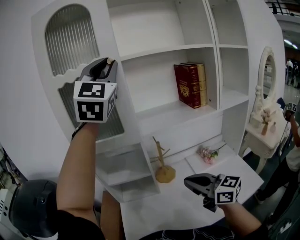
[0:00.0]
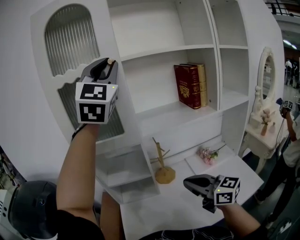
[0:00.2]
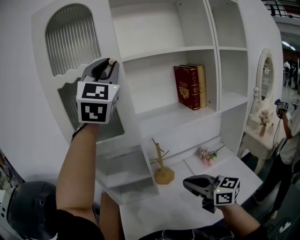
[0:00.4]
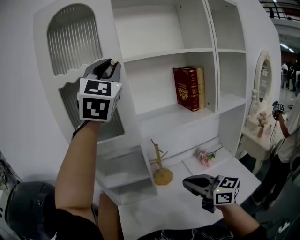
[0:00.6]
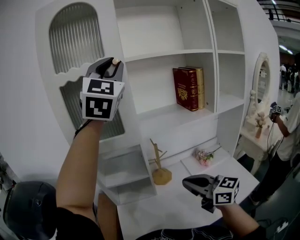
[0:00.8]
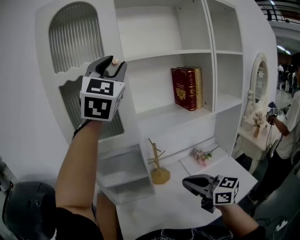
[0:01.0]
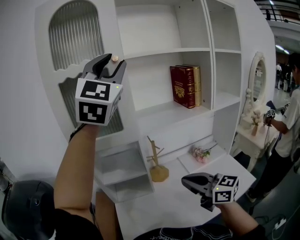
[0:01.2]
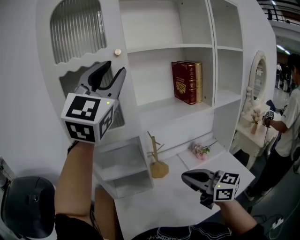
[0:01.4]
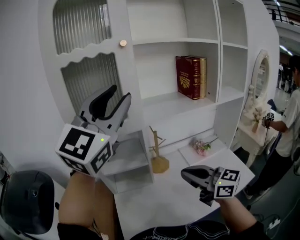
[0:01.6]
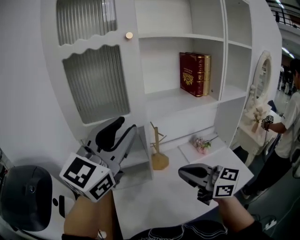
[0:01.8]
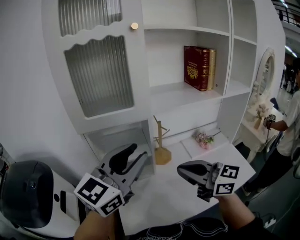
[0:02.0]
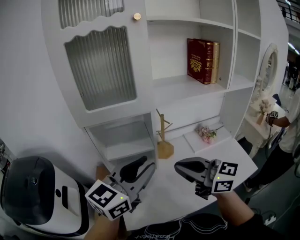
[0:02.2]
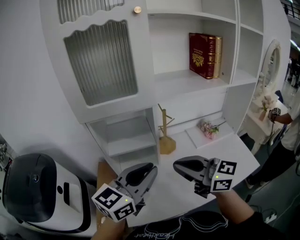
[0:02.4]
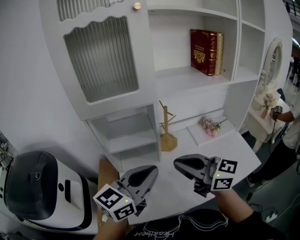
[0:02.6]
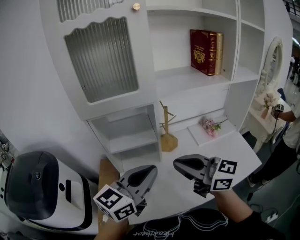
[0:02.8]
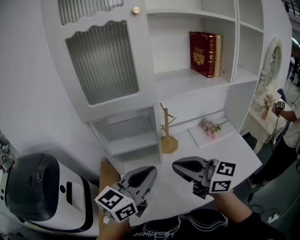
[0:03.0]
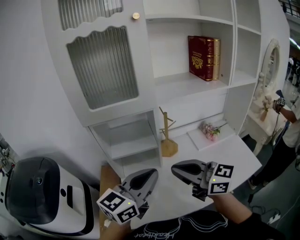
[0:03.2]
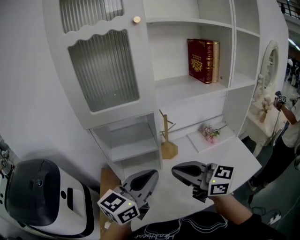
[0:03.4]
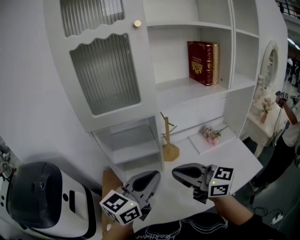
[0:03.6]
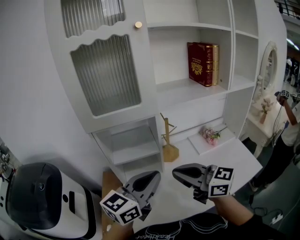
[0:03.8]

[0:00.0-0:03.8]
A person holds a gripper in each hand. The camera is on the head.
0:00.0 to 0:01.2: There are only small adjustments of the grippers.
0:01.2 to 0:02.6: The left gripper shifts roughly 40 cm downward, rotates around the line of its fingers by some 60 degrees, counterclockwise from behind, and closes up, while the right gripper travels to the left by some 10 cm.
0:02.6 to 0:03.8: The grippers move only a little.

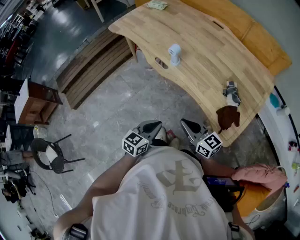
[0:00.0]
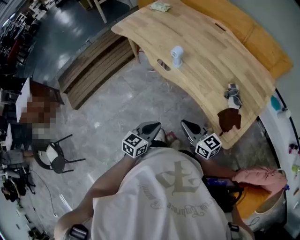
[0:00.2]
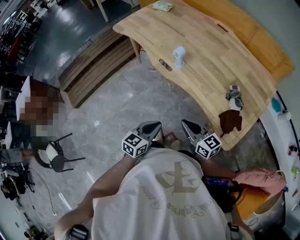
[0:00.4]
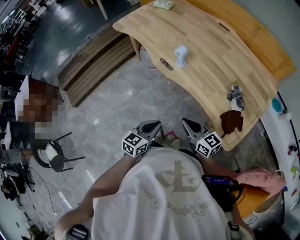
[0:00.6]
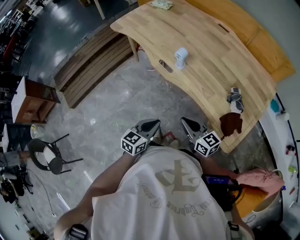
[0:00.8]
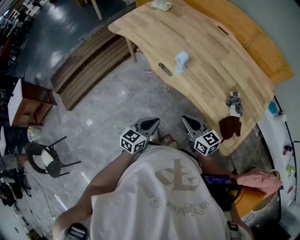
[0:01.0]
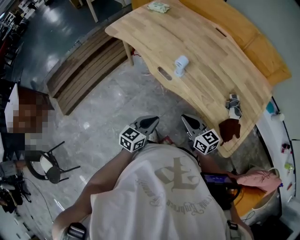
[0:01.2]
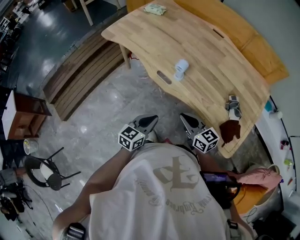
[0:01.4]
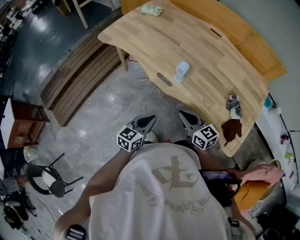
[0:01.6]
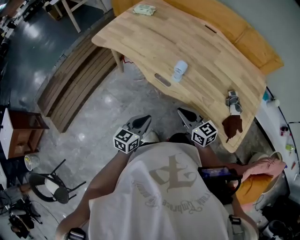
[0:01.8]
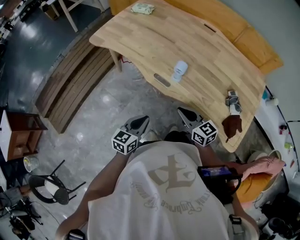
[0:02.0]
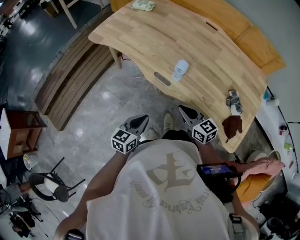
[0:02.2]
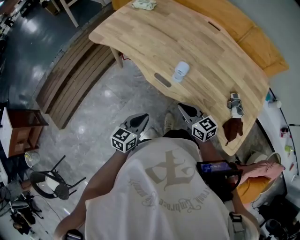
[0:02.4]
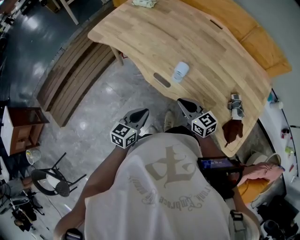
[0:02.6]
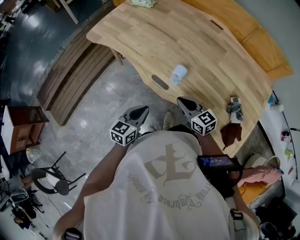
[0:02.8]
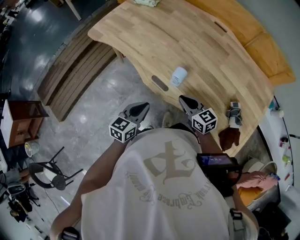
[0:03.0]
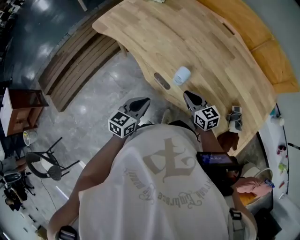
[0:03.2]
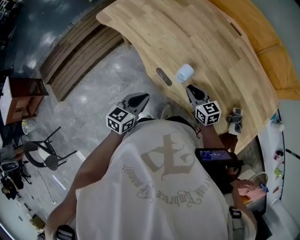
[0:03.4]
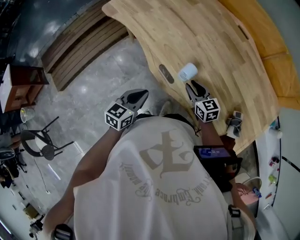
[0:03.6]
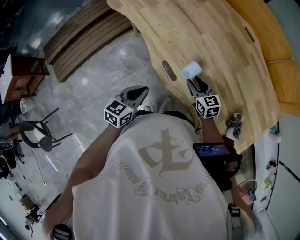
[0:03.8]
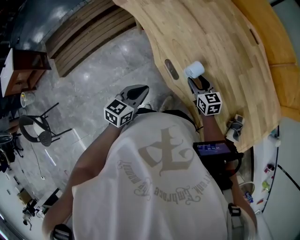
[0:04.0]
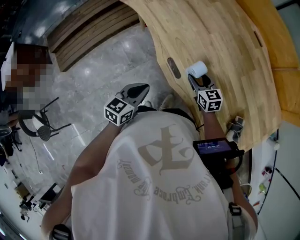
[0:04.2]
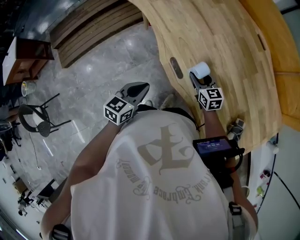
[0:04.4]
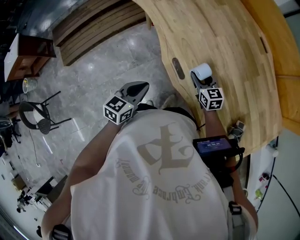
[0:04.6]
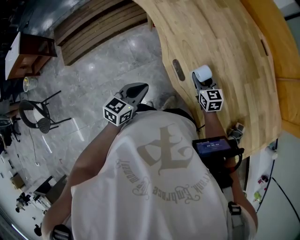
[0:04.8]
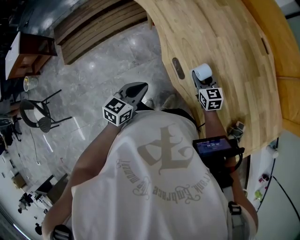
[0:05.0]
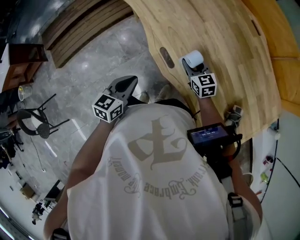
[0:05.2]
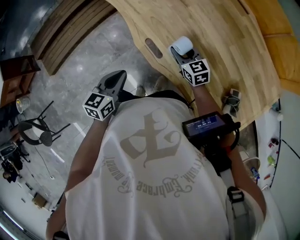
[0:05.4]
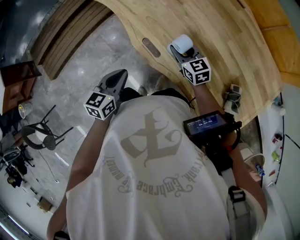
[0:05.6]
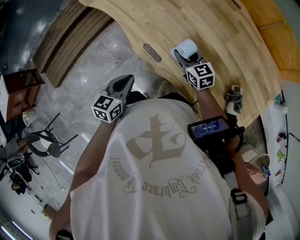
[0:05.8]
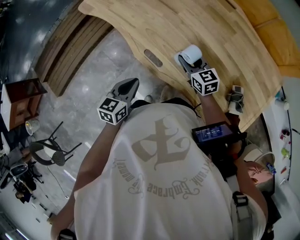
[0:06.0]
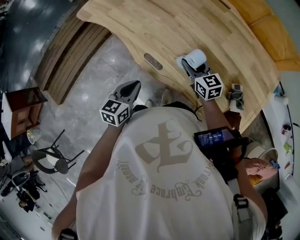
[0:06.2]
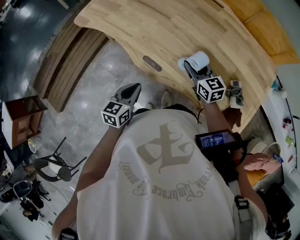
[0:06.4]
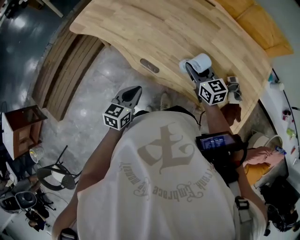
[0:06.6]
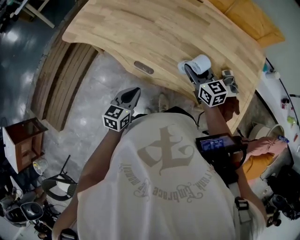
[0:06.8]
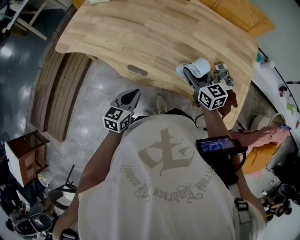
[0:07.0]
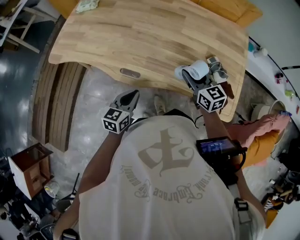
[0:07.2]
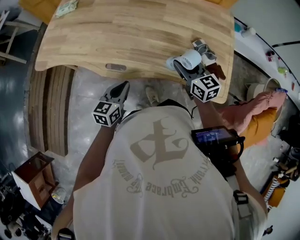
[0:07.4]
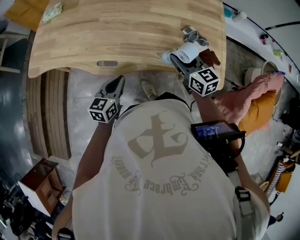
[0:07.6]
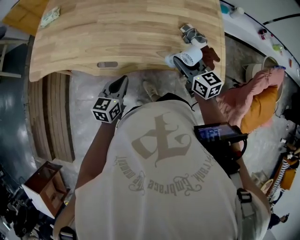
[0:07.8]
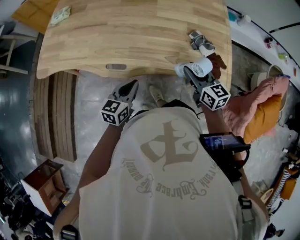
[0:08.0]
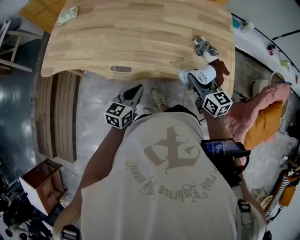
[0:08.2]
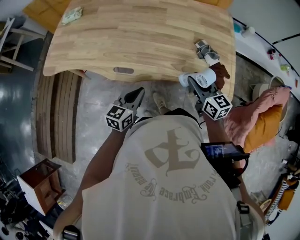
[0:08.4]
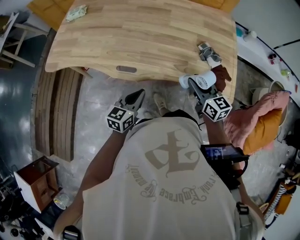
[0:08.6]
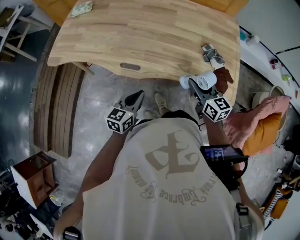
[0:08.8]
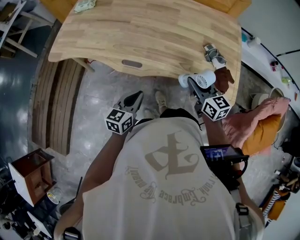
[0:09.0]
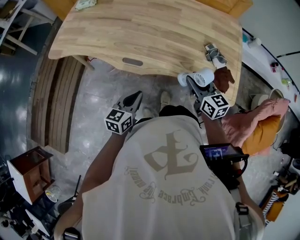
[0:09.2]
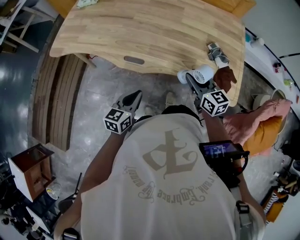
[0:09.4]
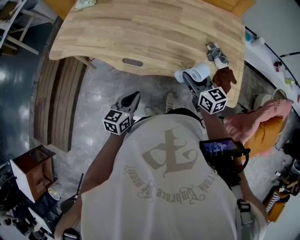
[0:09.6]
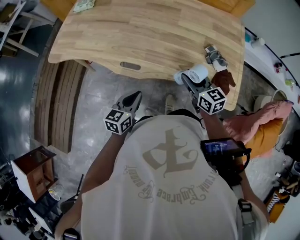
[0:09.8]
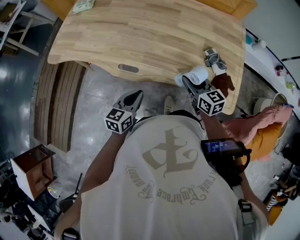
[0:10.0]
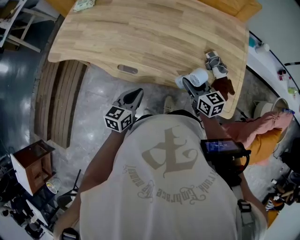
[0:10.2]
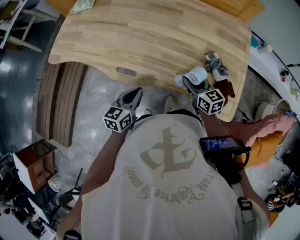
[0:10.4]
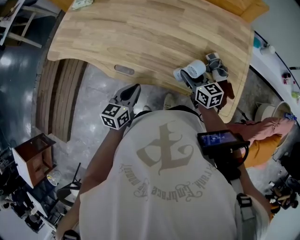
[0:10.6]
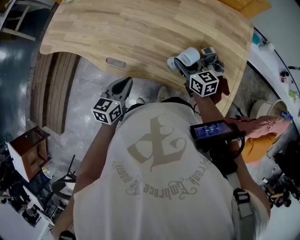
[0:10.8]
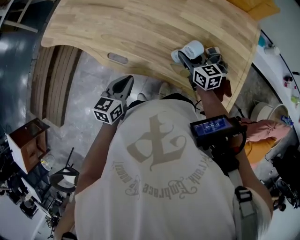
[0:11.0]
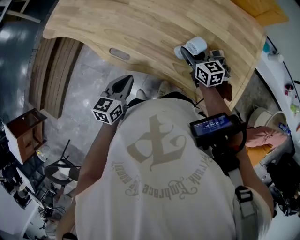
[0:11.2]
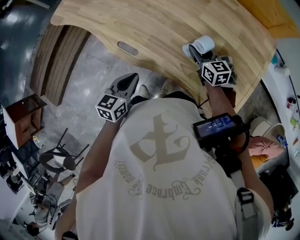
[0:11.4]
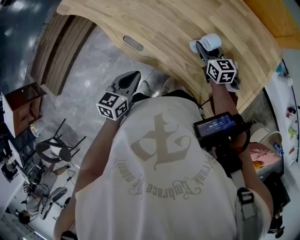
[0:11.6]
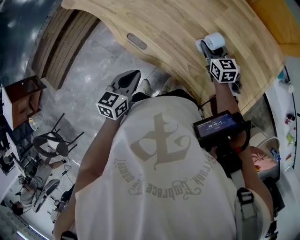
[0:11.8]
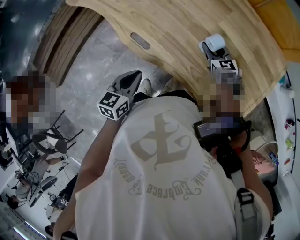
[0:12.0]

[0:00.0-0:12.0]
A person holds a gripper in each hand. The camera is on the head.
0:00.0 to 0:01.6: The two grippers go approximately 20 cm forward and to the left.
0:01.6 to 0:03.0: The grippers both shift forward by some 15 cm.
0:03.0 to 0:04.4: The right gripper moves forward and downward, roughly 15 cm, and opens.
0:04.4 to 0:06.0: The right gripper shifts approximately 5 cm upward and to the right.
0:06.0 to 0:07.6: The left gripper shifts by about 10 cm, and swivels roughly 30 degrees; the right gripper ends up roughly 25 cm from where it was, and turns by some 40 degrees.
0:07.6 to 0:09.0: Both grippers travel together backward, about 5 cm.
0:09.0 to 0:10.4: The right gripper heads forward and downward, covering approximately 10 cm; the left gripper heads forward, covering about 10 cm.
0:10.4 to 0:12.0: The right gripper travels forward and downward by approximately 20 cm, and rotates approximately 30 degrees, while the left gripper swivels approximately 20 degrees.

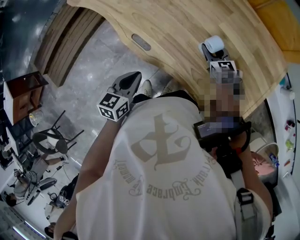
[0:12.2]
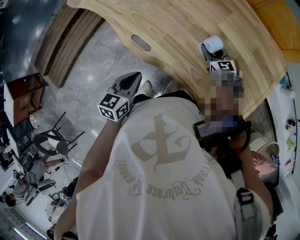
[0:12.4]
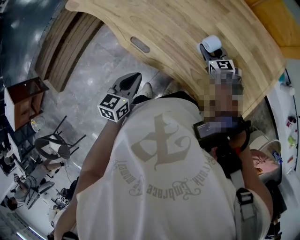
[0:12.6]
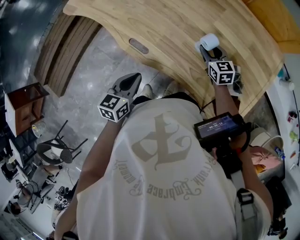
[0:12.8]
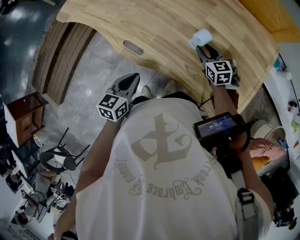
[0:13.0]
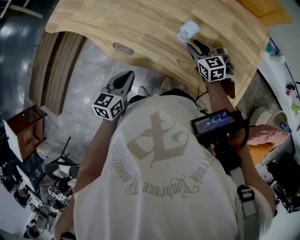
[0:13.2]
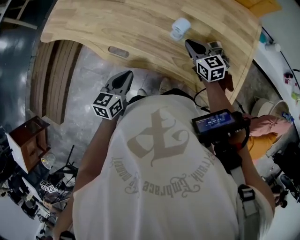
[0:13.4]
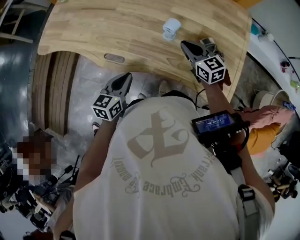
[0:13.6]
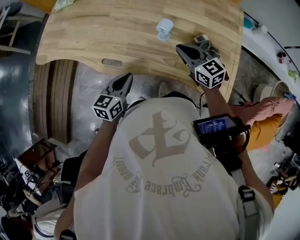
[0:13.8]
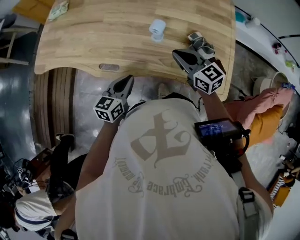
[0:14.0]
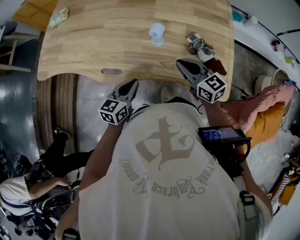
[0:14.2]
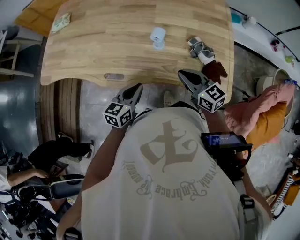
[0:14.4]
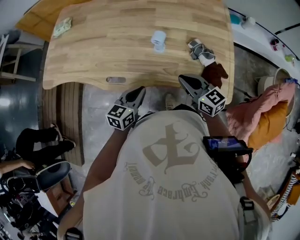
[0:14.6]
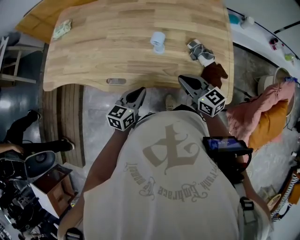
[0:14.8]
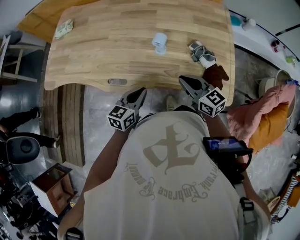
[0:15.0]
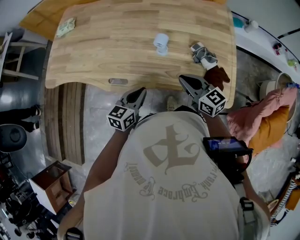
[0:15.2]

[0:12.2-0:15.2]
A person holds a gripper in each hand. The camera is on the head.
0:12.2 to 0:13.8: The left gripper shifts about 5 cm to the right, and changes its angle by roughly 30 degrees. Meanwhile the right gripper goes approximately 15 cm backward and upward, and closes up.
0:13.8 to 0:15.2: The right gripper moves backward, approximately 10 cm.

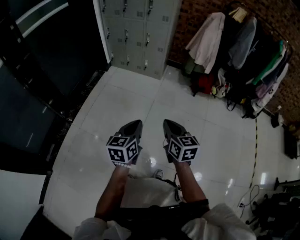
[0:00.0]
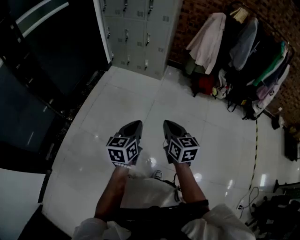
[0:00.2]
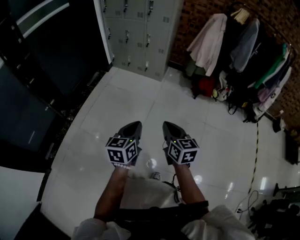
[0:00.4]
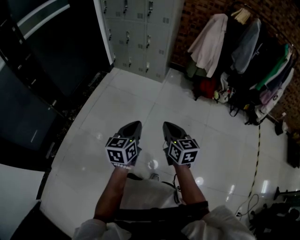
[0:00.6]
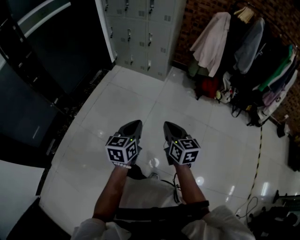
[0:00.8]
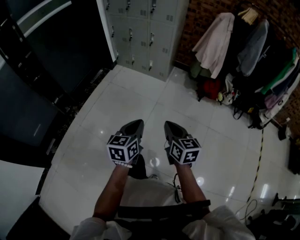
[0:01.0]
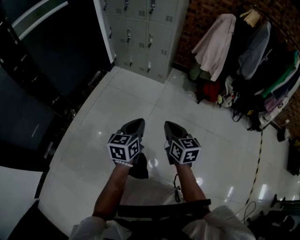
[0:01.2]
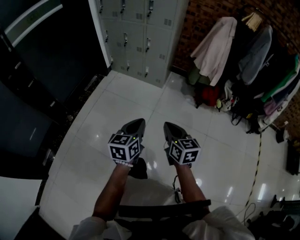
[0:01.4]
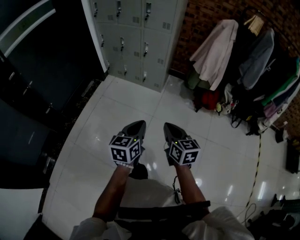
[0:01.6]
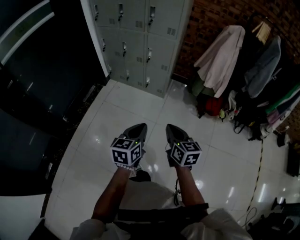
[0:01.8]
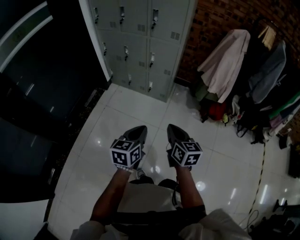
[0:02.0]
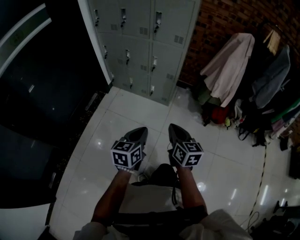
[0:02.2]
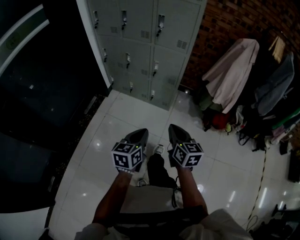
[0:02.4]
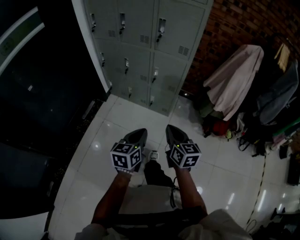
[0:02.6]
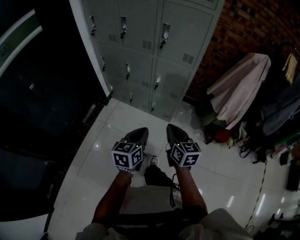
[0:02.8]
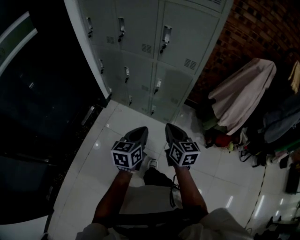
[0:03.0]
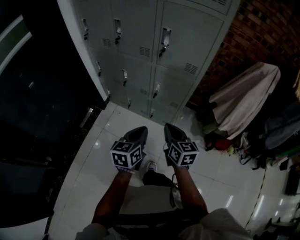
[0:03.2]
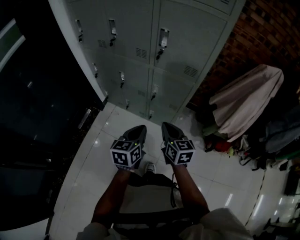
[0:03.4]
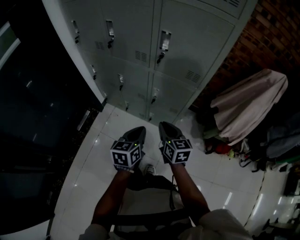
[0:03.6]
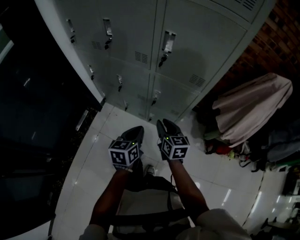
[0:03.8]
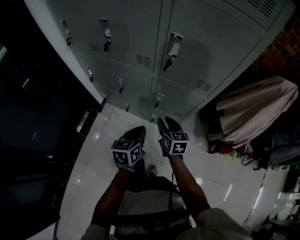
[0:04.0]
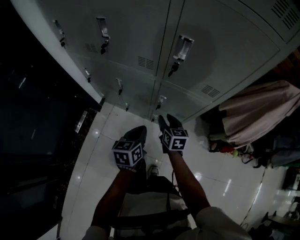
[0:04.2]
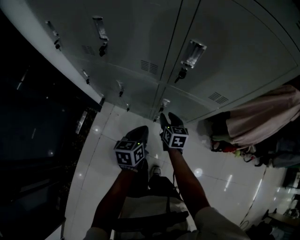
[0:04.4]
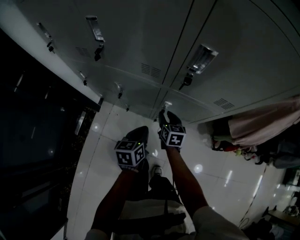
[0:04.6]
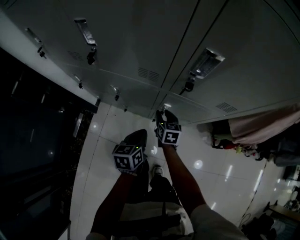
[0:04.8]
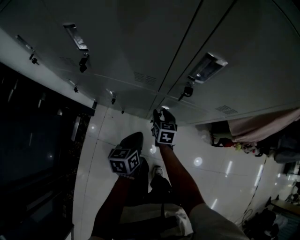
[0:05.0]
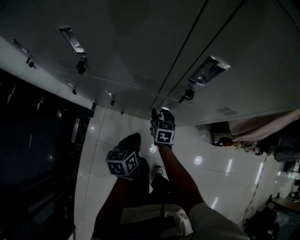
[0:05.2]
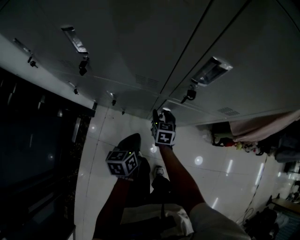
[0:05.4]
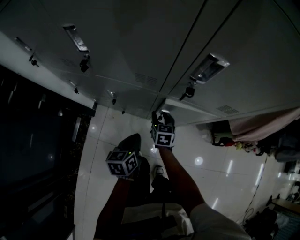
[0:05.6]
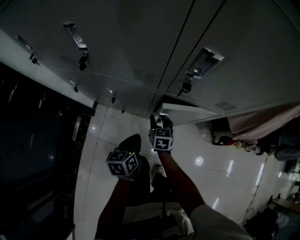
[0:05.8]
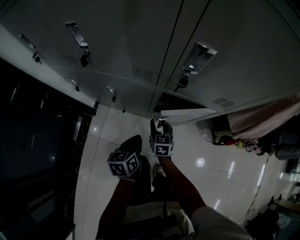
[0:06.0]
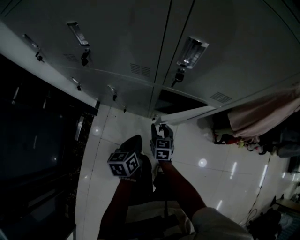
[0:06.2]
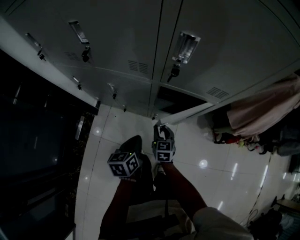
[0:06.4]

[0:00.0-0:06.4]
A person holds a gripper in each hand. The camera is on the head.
0:00.0 to 0:01.6: Both grippers travel together forward, about 25 cm.
0:01.6 to 0:03.2: The two grippers travel together, forward, some 50 cm.
0:03.2 to 0:04.8: The grippers both shift forward and downward by some 40 cm. The right gripper rotates about 20 degrees, and opens up.
0:04.8 to 0:06.4: The right gripper travels backward by about 10 cm. Meanwhile the left gripper travels backward by about 5 cm.
